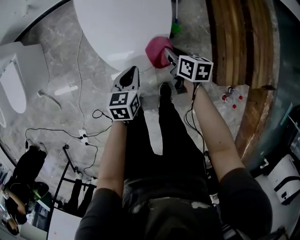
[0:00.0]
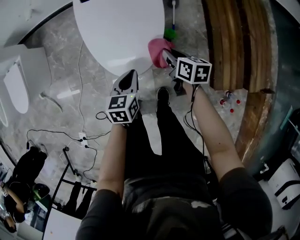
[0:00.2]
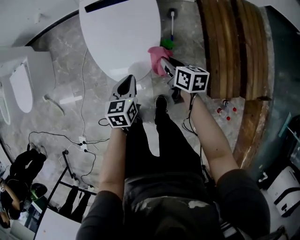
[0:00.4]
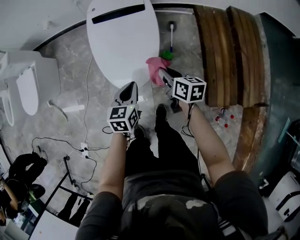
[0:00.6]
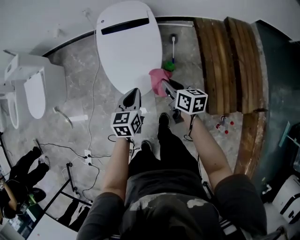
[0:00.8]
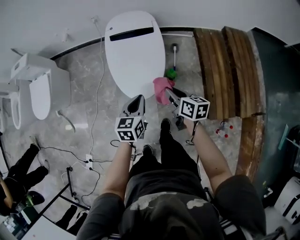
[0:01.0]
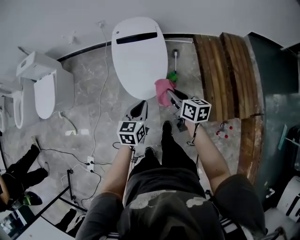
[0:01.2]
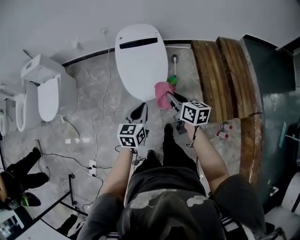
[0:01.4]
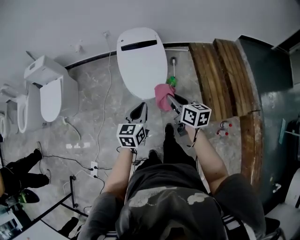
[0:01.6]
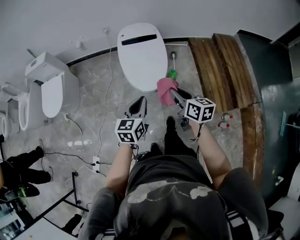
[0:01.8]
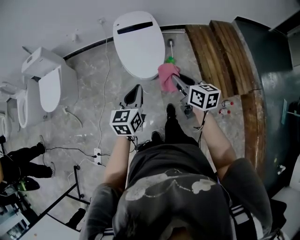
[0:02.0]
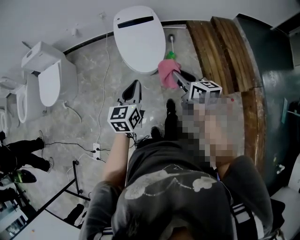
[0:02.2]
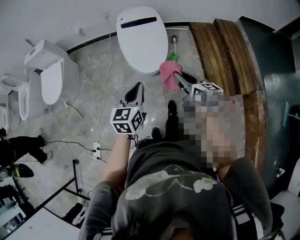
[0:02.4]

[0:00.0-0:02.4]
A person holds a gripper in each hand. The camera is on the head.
0:00.0 to 0:01.2: The grippers both shift upward and backward by approximately 25 cm.
0:01.2 to 0:02.4: The right gripper heads backward and upward, covering about 20 cm; the left gripper moves backward, upward and to the left, about 20 cm.

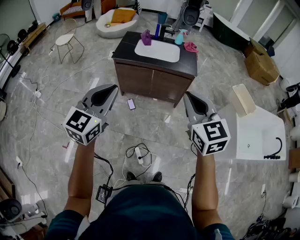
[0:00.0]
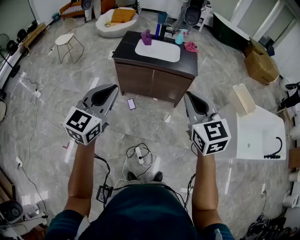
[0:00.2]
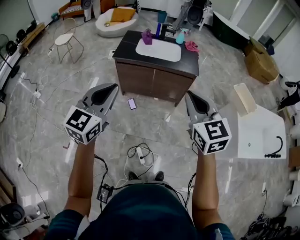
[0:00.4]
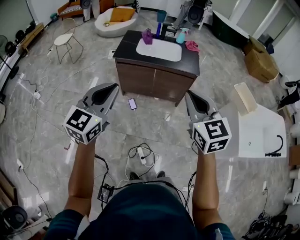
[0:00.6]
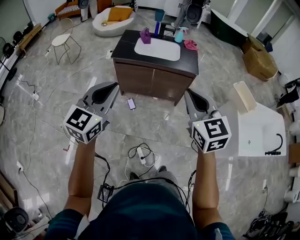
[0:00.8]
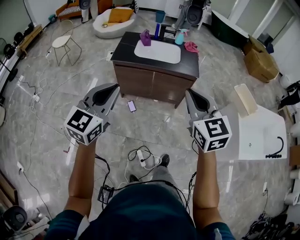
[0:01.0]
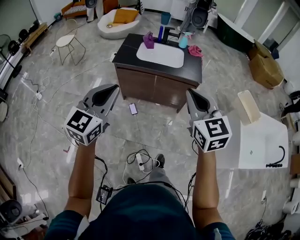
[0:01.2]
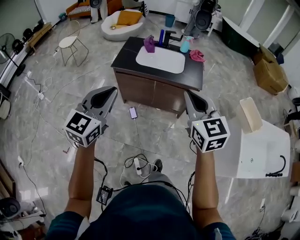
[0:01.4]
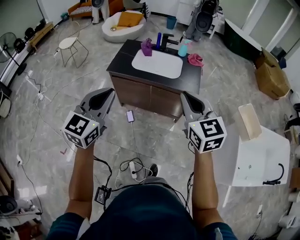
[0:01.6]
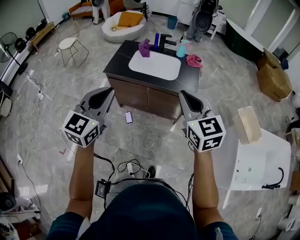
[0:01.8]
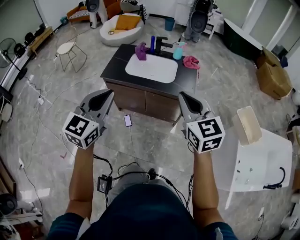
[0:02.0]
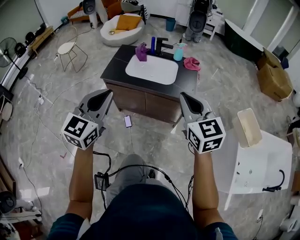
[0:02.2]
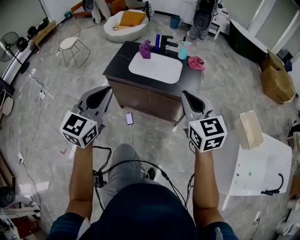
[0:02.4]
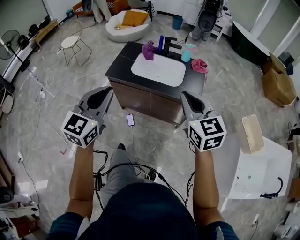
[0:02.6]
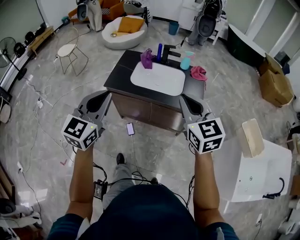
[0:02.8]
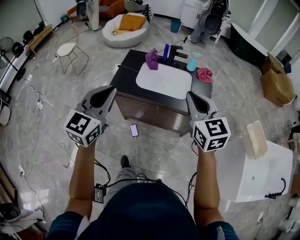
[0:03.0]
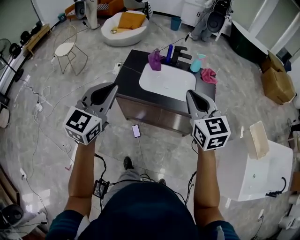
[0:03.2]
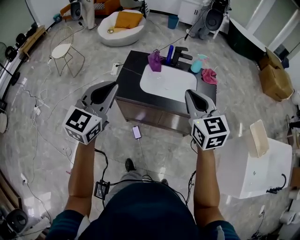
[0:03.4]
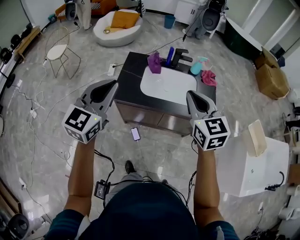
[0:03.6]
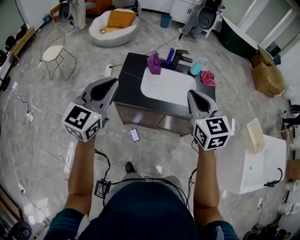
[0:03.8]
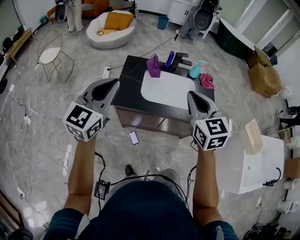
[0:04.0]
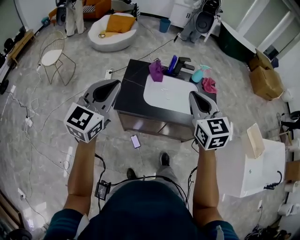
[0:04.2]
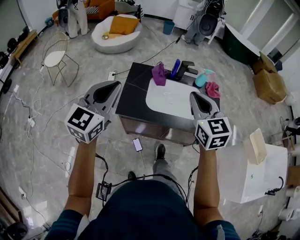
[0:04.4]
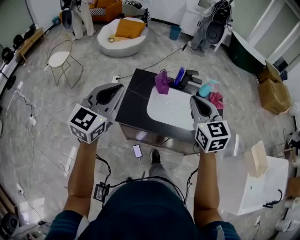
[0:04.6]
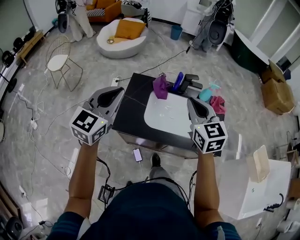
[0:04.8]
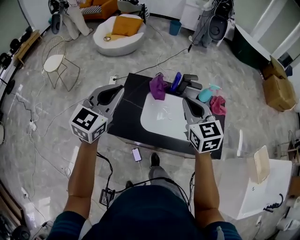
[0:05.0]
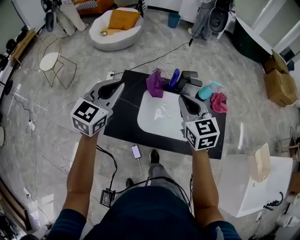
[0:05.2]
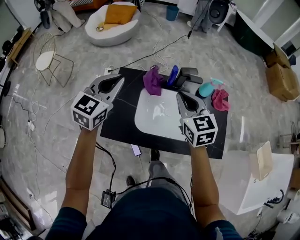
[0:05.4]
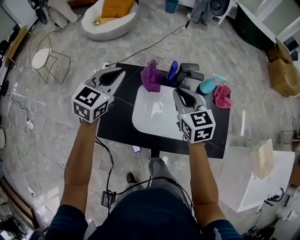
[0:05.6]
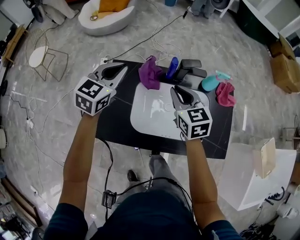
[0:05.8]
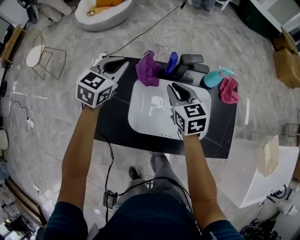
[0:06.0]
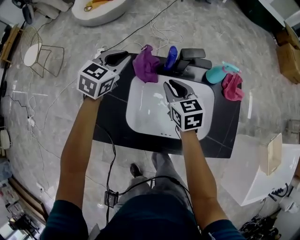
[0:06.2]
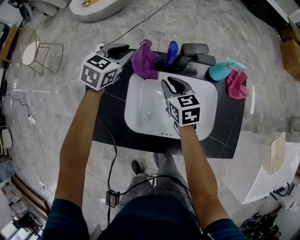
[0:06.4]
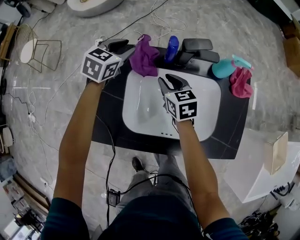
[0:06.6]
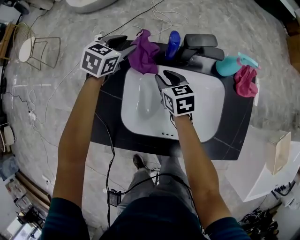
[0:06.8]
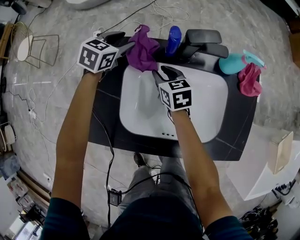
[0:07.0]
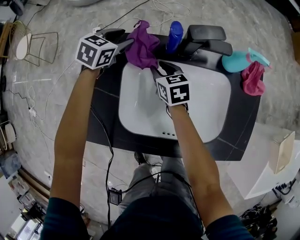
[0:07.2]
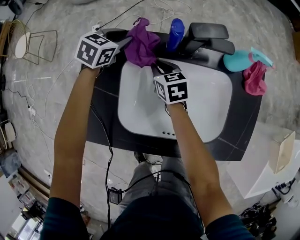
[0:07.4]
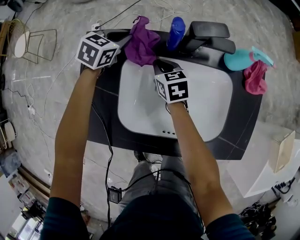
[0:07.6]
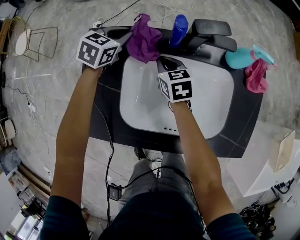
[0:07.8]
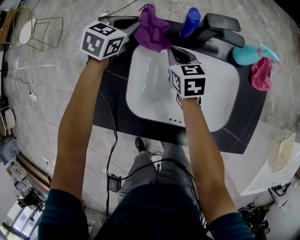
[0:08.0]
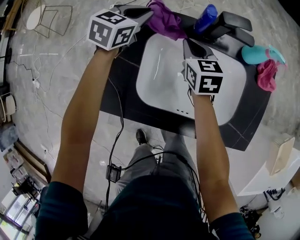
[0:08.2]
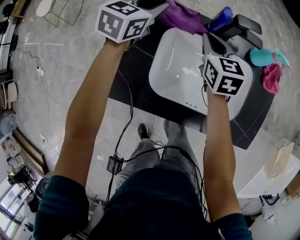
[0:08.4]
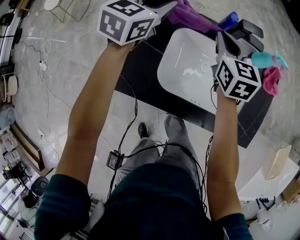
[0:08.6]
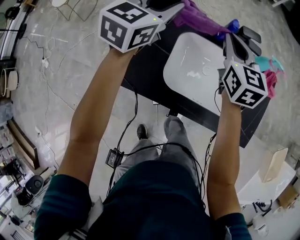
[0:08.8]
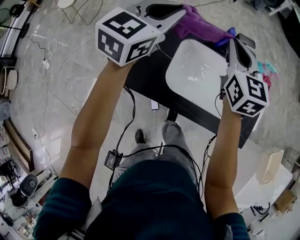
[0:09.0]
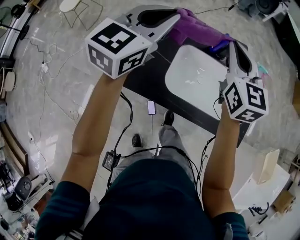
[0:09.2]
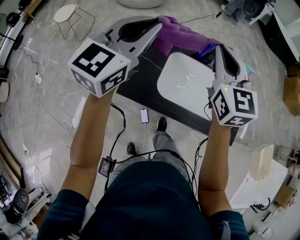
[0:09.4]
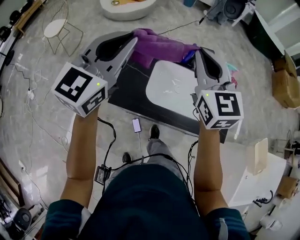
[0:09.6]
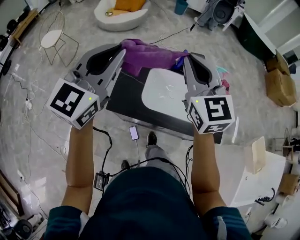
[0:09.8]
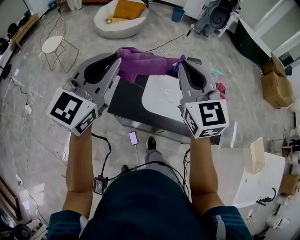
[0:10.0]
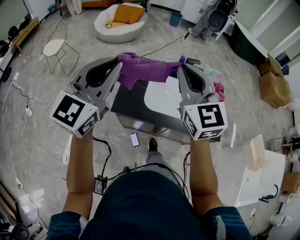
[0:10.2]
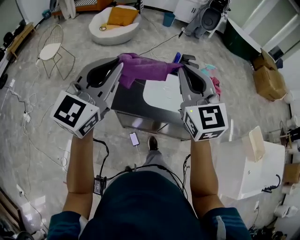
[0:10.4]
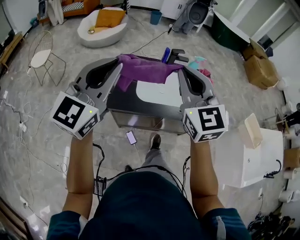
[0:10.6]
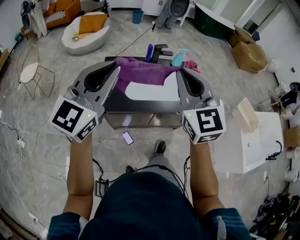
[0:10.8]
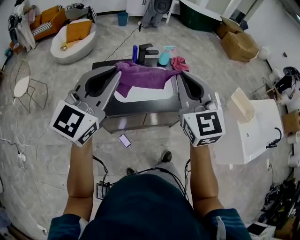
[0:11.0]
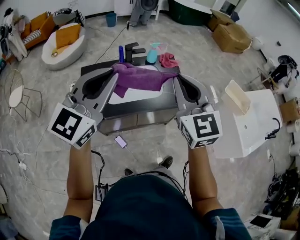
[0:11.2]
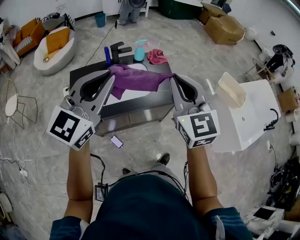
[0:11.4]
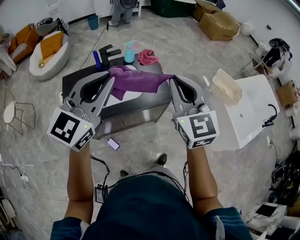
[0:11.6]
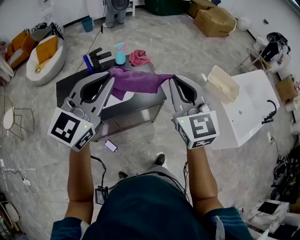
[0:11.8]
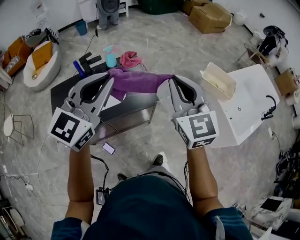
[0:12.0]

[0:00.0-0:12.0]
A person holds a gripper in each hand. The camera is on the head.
0:00.0 to 0:01.6: Both grippers move forward, some 20 cm.
0:01.6 to 0:03.0: Both grippers move forward, roughly 20 cm.
0:03.0 to 0:04.4: Both grippers travel together forward and to the left, some 25 cm.
0:04.4 to 0:06.0: The two grippers go approximately 50 cm forward and downward. The left gripper turns by approximately 20 degrees. The right gripper turns by some 20 degrees.
0:06.0 to 0:07.6: The right gripper travels downward by some 25 cm. Meanwhile the left gripper travels downward and forward by about 25 cm, swivels roughly 20 degrees, and opens and closes again.
0:07.6 to 0:09.0: The left gripper goes some 40 cm upward and backward, and tilts its fingers some 30 degrees upward. Meanwhile the right gripper shifts roughly 35 cm upward, and changes its angle by approximately 30 degrees.
0:09.0 to 0:10.4: The two grippers go some 35 cm backward and upward. The right gripper swivels some 20 degrees, while the left gripper changes its angle by roughly 20 degrees.
0:10.4 to 0:12.0: Both grippers are carried about 50 cm. The left gripper swivels roughly 30 degrees. Meanwhile the right gripper rotates about 30 degrees.

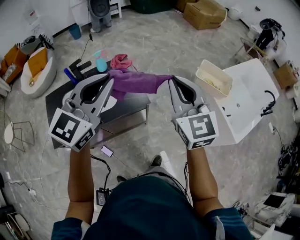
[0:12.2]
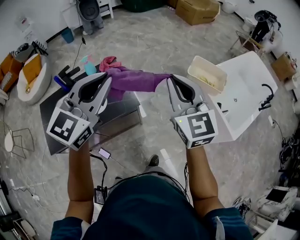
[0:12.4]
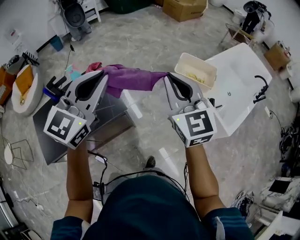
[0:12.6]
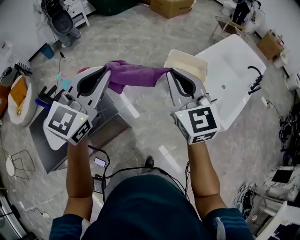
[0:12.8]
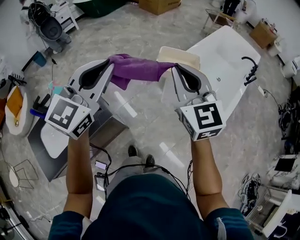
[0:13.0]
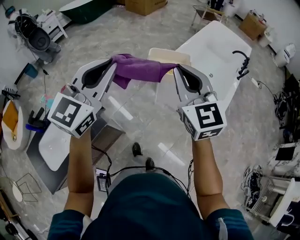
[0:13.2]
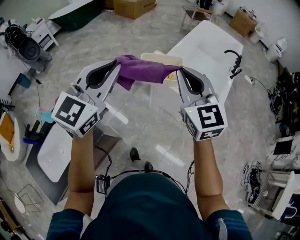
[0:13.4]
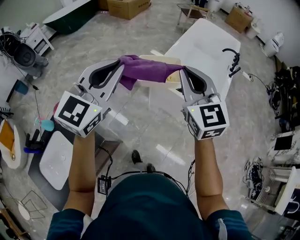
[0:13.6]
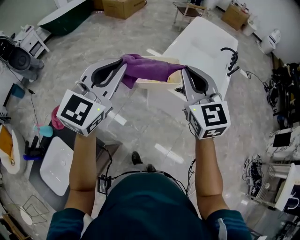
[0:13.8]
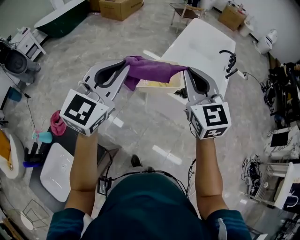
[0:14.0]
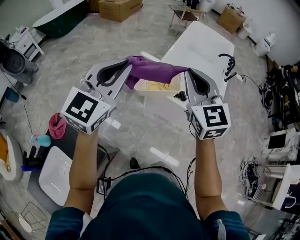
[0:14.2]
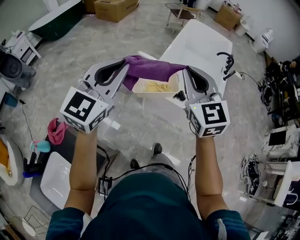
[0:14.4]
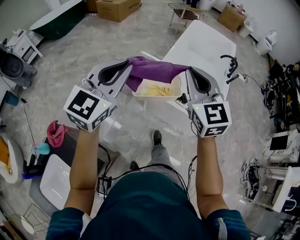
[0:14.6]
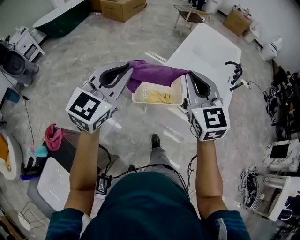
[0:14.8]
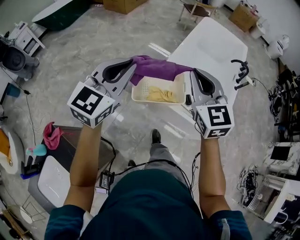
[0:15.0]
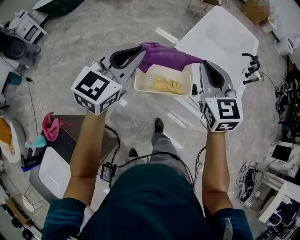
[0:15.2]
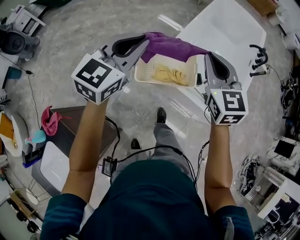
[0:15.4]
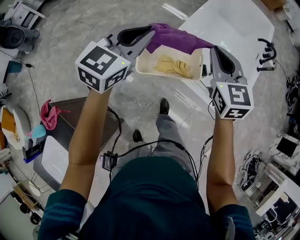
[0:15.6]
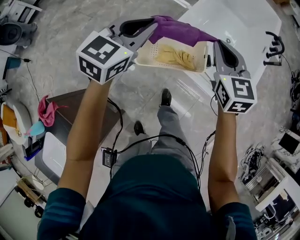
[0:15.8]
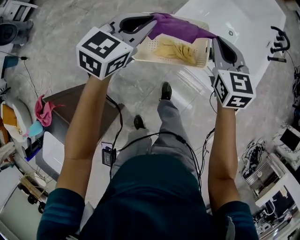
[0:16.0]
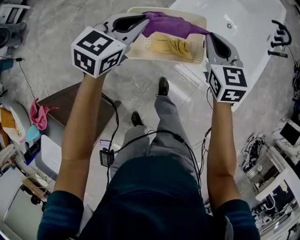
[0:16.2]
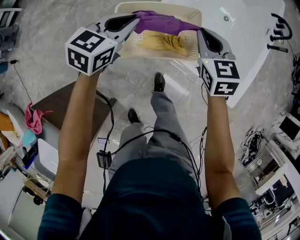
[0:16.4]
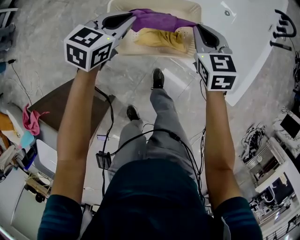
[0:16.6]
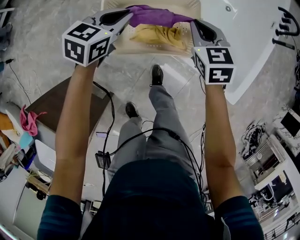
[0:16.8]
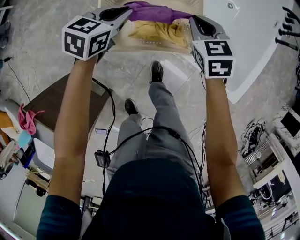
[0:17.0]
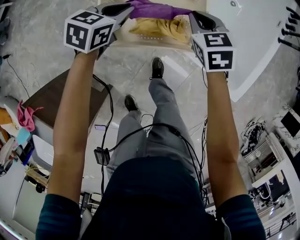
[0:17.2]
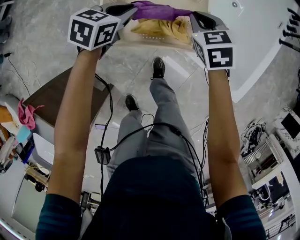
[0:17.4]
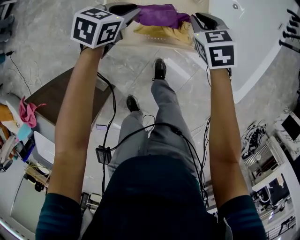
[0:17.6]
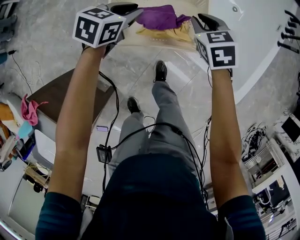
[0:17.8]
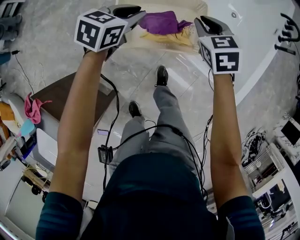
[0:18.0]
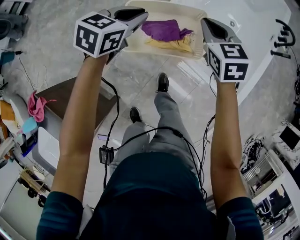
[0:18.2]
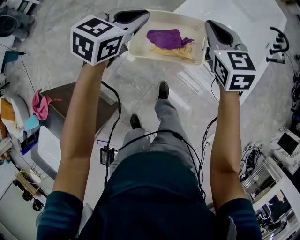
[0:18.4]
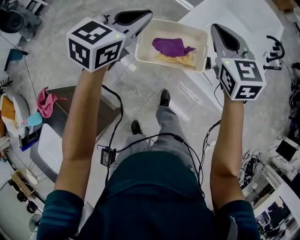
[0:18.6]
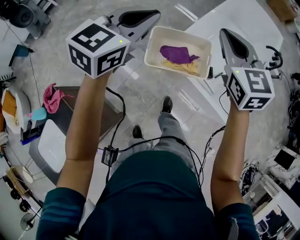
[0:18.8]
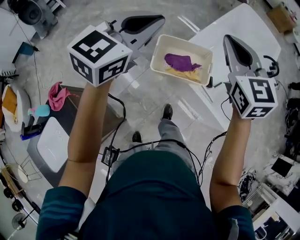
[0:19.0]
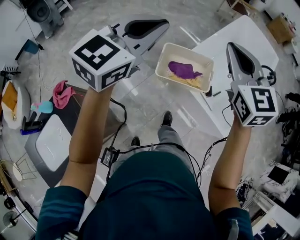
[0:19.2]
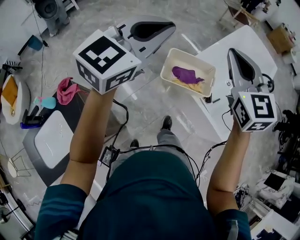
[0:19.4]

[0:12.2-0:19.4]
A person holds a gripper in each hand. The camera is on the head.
0:12.2 to 0:13.6: The pair of grippers is taken approximately 40 cm. The right gripper swivels approximately 30 degrees, while the left gripper changes its angle by about 30 degrees.
0:13.6 to 0:15.0: The two grippers go roughly 30 cm forward.
0:15.0 to 0:16.6: The left gripper is displaced downward and forward by roughly 50 cm, and swivels about 30 degrees, while the right gripper shifts some 40 cm downward, and changes its angle by approximately 30 degrees.
0:16.6 to 0:18.0: The left gripper reaches approximately 10 cm downward, then returns. The right gripper reaches about 10 cm downward, then returns.
0:18.0 to 0:19.4: Both grippers travel together upward and backward, some 50 cm. The left gripper angles its fingers upward, by approximately 40 degrees, while the right gripper points its fingers approximately 30 degrees further upward.

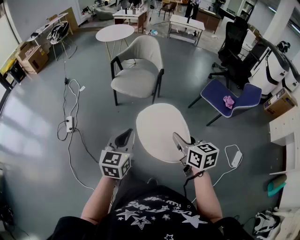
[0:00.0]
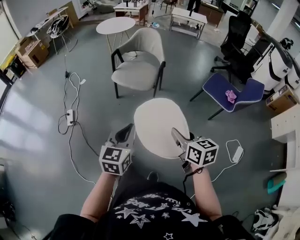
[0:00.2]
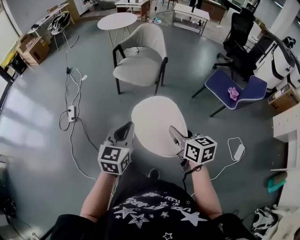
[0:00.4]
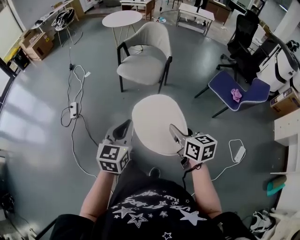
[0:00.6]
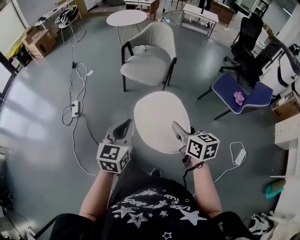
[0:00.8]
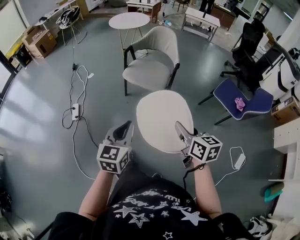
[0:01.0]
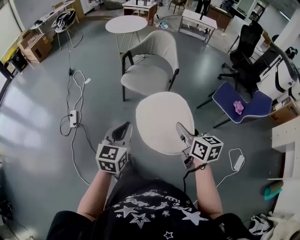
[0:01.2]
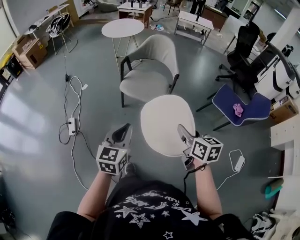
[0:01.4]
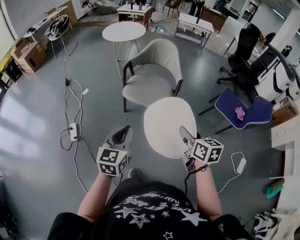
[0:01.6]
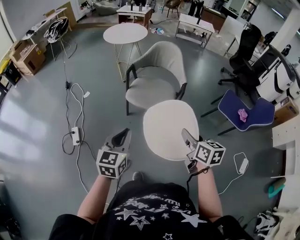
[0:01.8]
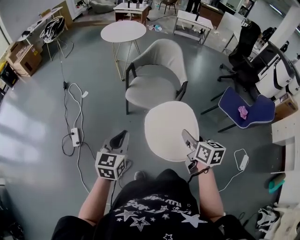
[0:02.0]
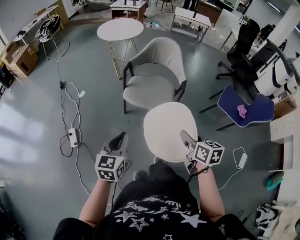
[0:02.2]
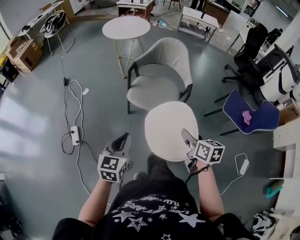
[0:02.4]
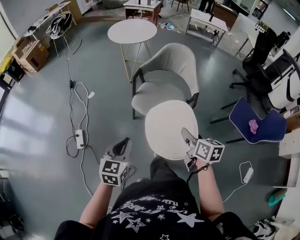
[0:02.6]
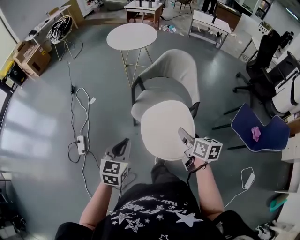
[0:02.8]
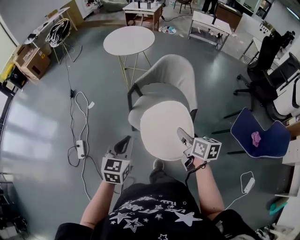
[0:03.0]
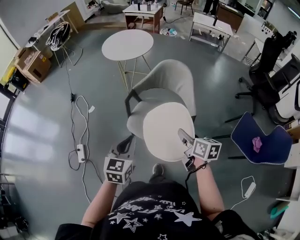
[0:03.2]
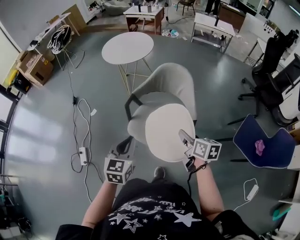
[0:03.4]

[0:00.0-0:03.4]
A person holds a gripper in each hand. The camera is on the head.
0:00.0 to 0:01.6: The grippers both shift forward and to the left by roughly 25 cm.
0:01.6 to 0:03.4: The two grippers go approximately 35 cm forward.
